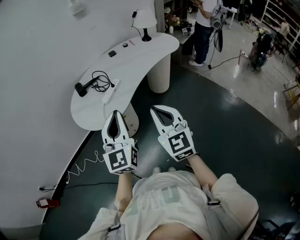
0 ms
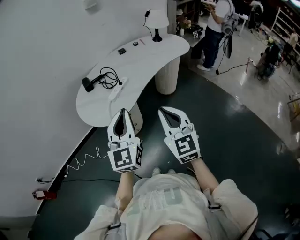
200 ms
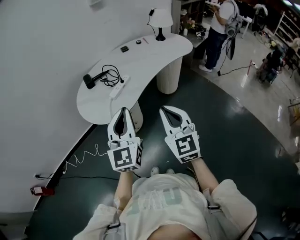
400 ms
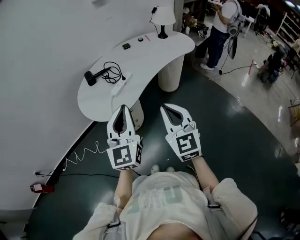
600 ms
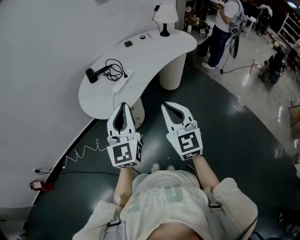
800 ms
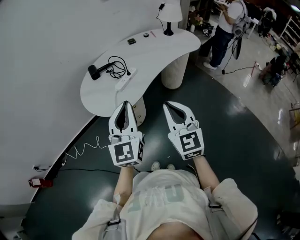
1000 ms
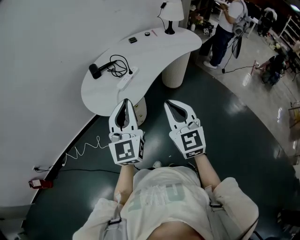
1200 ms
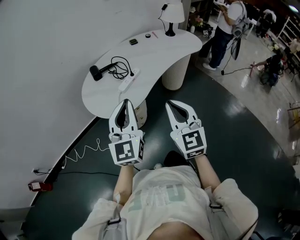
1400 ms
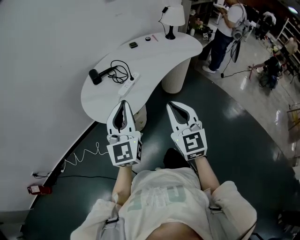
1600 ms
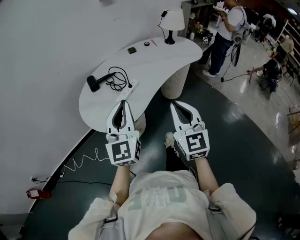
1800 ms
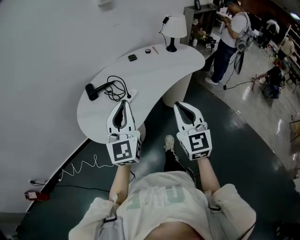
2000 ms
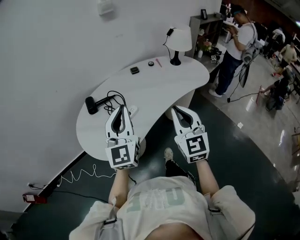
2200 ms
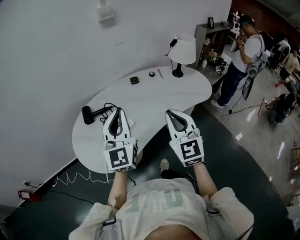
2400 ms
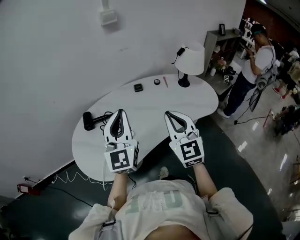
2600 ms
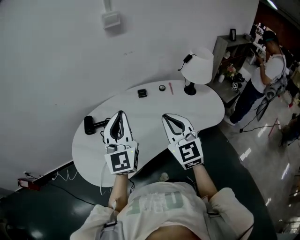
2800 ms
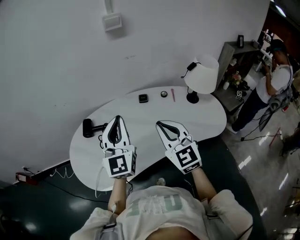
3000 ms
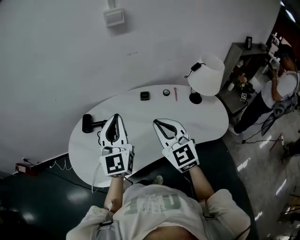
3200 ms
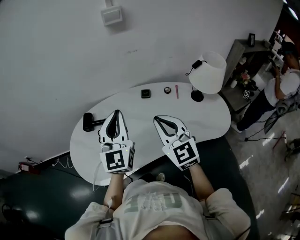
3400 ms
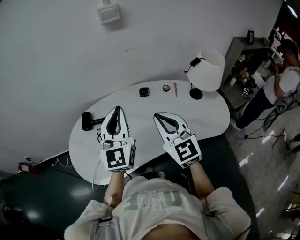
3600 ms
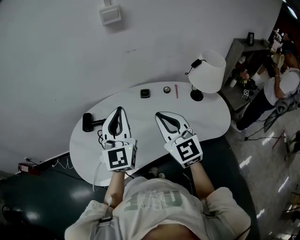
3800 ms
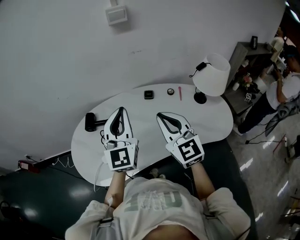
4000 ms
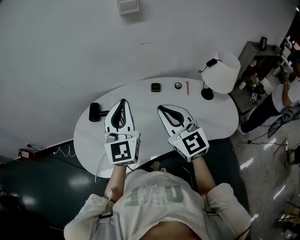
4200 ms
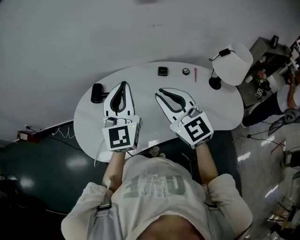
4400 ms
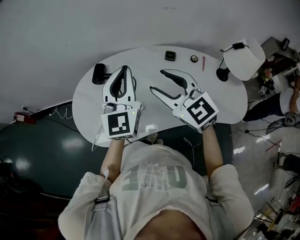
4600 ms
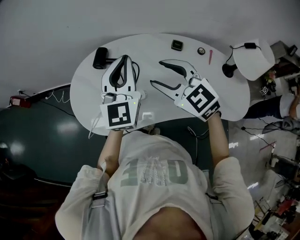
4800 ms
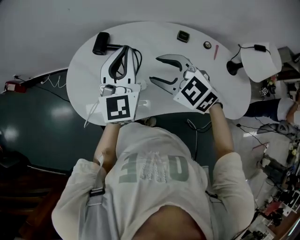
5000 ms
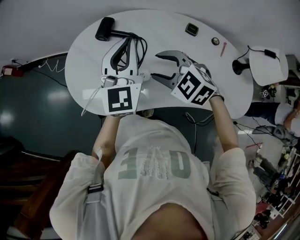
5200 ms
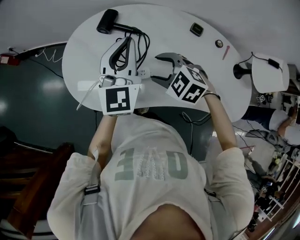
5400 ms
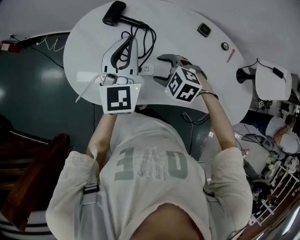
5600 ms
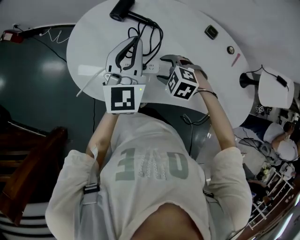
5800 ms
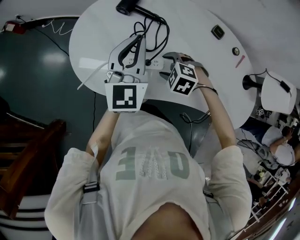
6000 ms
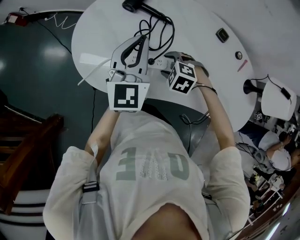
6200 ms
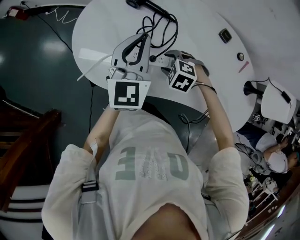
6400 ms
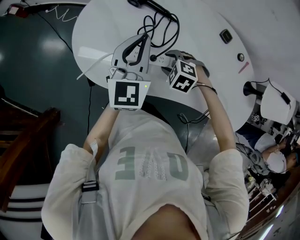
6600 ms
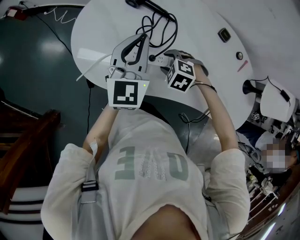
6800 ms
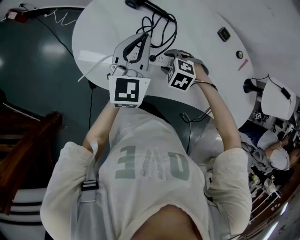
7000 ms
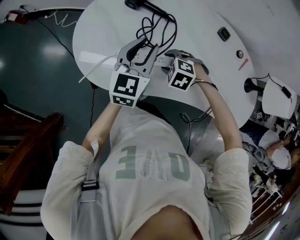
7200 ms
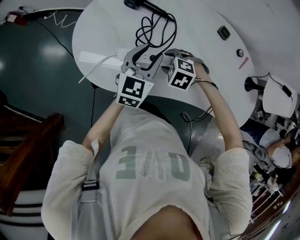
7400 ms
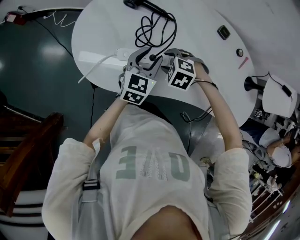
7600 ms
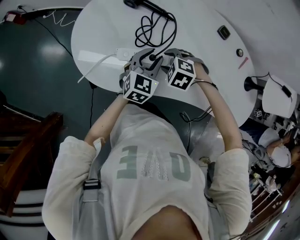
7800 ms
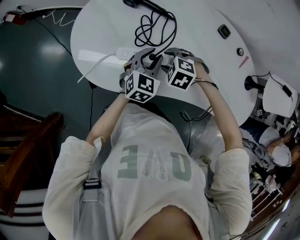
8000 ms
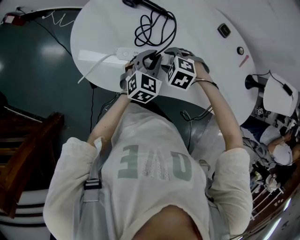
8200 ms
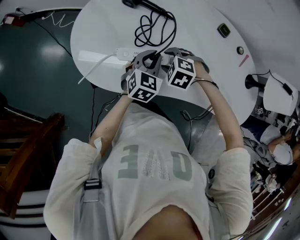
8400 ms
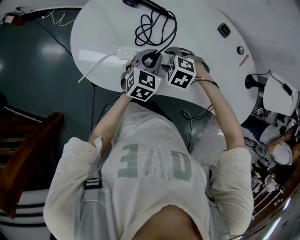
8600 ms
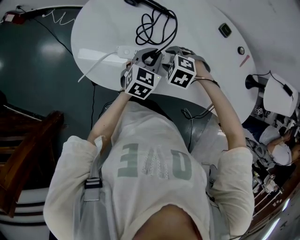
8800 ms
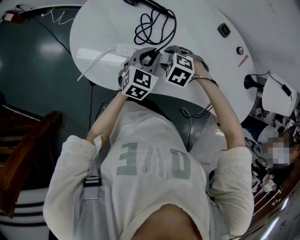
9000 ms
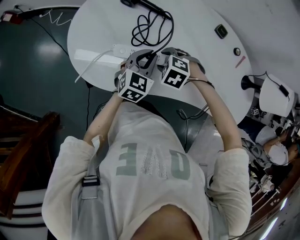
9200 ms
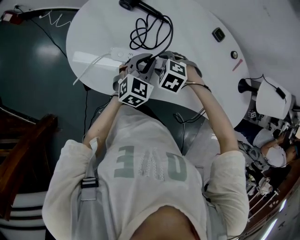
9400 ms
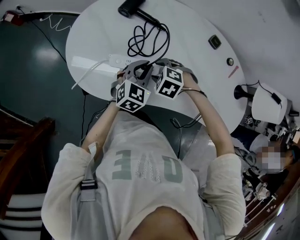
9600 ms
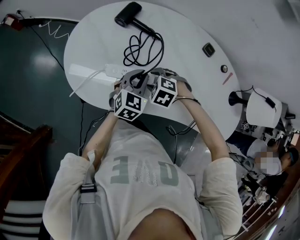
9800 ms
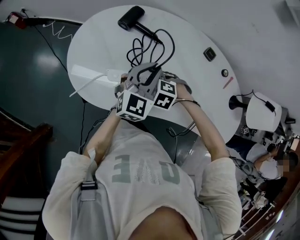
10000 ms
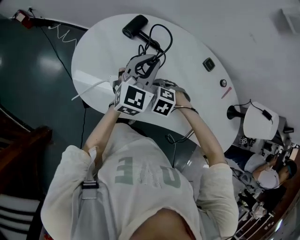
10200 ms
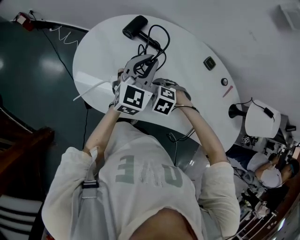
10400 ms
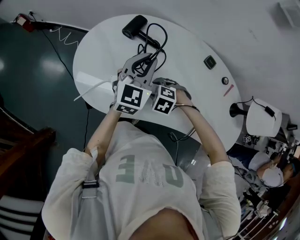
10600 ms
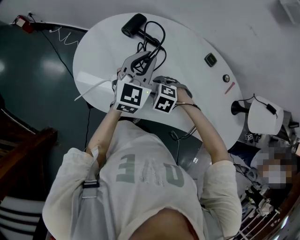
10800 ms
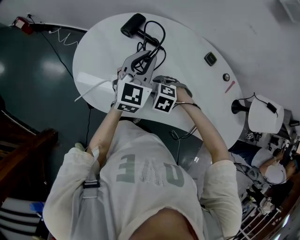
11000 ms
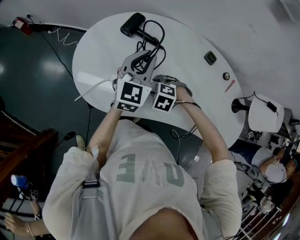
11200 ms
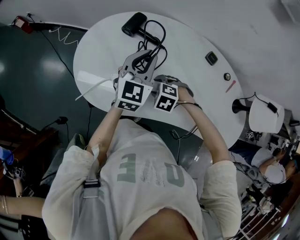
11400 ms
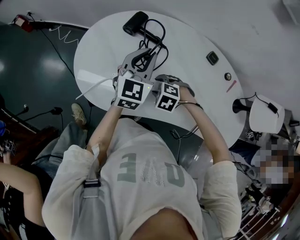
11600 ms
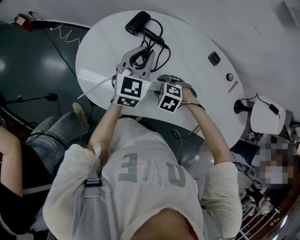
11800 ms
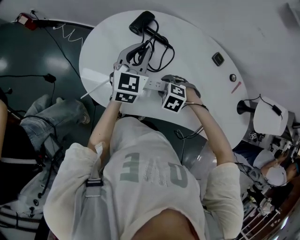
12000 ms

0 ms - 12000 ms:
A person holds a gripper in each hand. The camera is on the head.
0 ms - 1600 ms: The left gripper goes some 10 cm to the left and forward; the right gripper moves forward, approximately 5 cm.
1600 ms - 3000 ms: Both grippers are carried some 40 cm. The left gripper turns by approximately 20 degrees. The right gripper turns by about 30 degrees.
3000 ms - 4400 ms: The right gripper goes some 5 cm forward. Meanwhile the left gripper ends up approximately 5 cm from where it was.
4400 ms - 6000 ms: The left gripper shifts about 15 cm downward, and rotates approximately 20 degrees. The right gripper heads downward, covering roughly 35 cm, tilts its fingers some 70 degrees downward, and opens its fingers.
6000 ms - 7600 ms: The left gripper heads downward, covering about 15 cm, swivels roughly 30 degrees, and opens its fingers.
7600 ms - 9000 ms: The left gripper closes.
9000 ms - 10400 ms: The left gripper travels upward by approximately 15 cm, and turns by approximately 20 degrees.
10400 ms - 12000 ms: The left gripper shifts by approximately 5 cm.

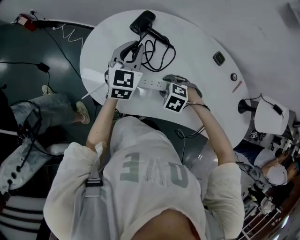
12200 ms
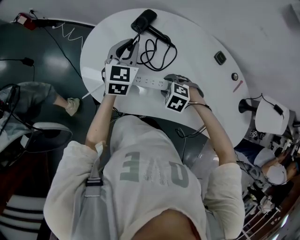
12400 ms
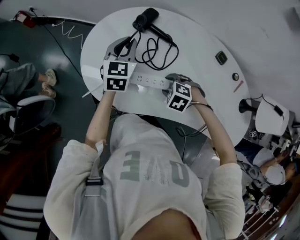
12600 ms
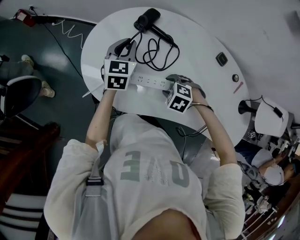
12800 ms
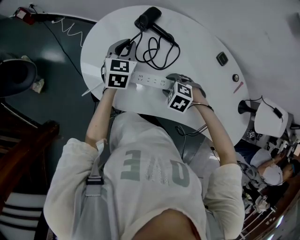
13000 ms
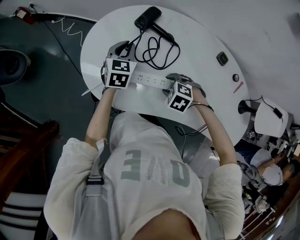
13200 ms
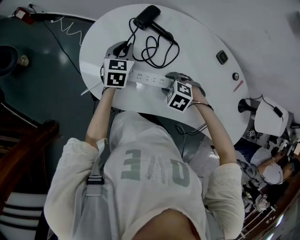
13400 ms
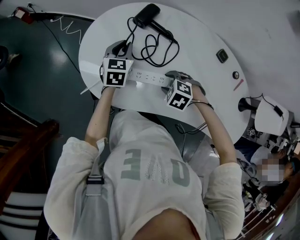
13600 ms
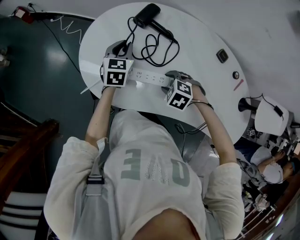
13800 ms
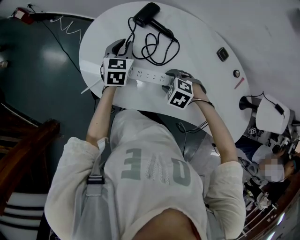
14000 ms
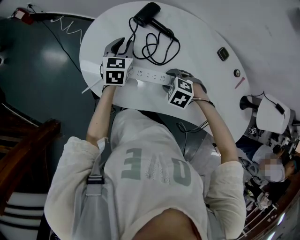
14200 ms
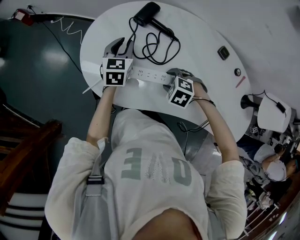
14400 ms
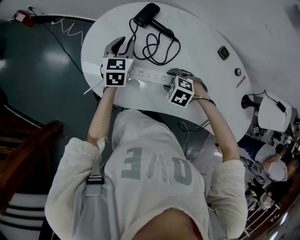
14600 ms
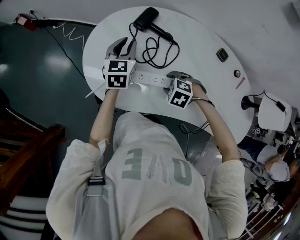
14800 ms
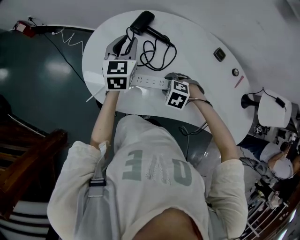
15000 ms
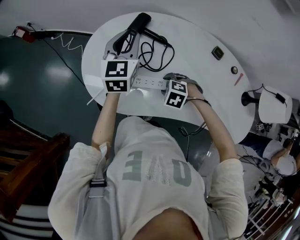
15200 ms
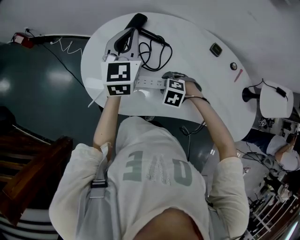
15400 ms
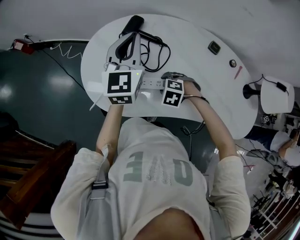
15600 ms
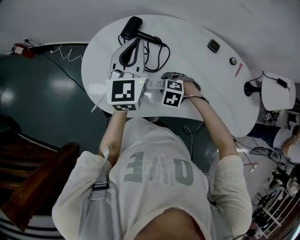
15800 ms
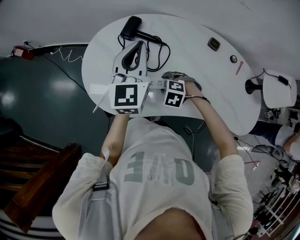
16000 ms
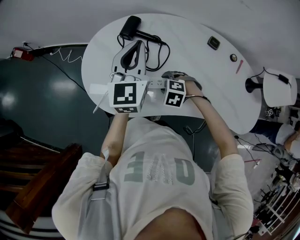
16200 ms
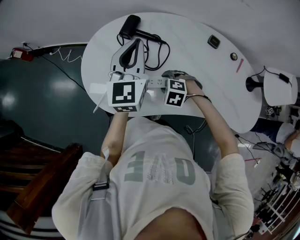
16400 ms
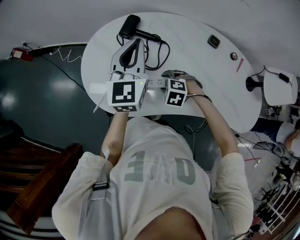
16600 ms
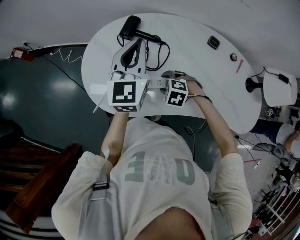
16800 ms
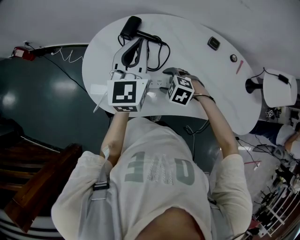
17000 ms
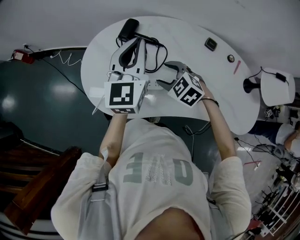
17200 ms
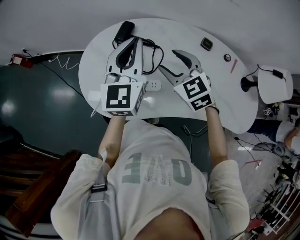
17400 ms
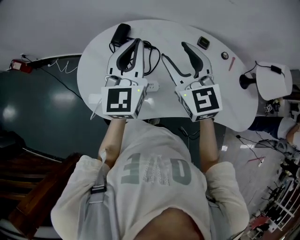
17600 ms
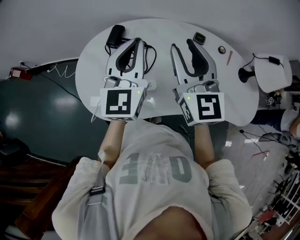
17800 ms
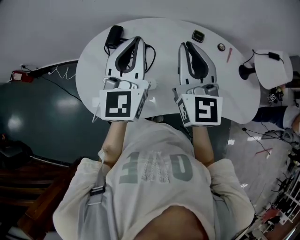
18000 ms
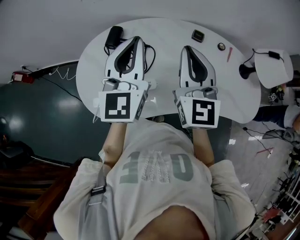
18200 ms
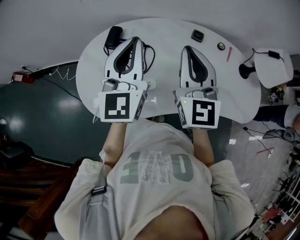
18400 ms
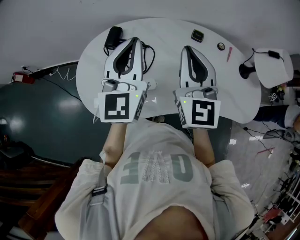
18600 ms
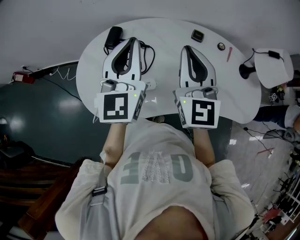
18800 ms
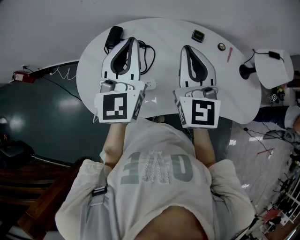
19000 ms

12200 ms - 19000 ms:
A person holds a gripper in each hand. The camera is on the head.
12200 ms - 13600 ms: The left gripper is displaced downward by approximately 10 cm.
13600 ms - 15000 ms: The left gripper heads upward, covering some 10 cm.
15000 ms - 16200 ms: The left gripper goes about 10 cm upward, and closes up.
16200 ms - 17600 ms: The right gripper shifts some 30 cm upward, and tilts its fingers approximately 70 degrees upward. The left gripper is displaced upward by some 5 cm.
17600 ms - 19000 ms: The right gripper shifts approximately 5 cm to the right, changes its angle by about 20 degrees, and closes up.

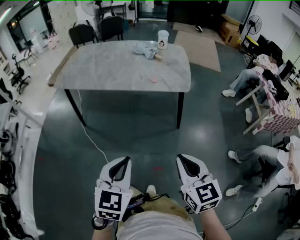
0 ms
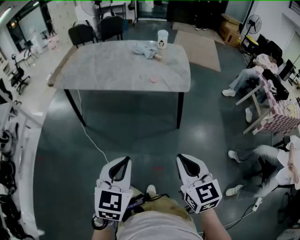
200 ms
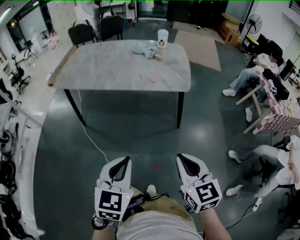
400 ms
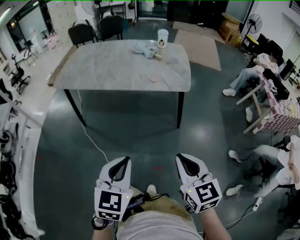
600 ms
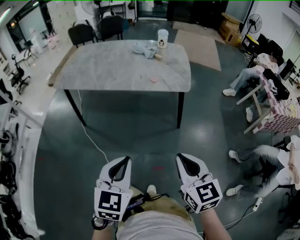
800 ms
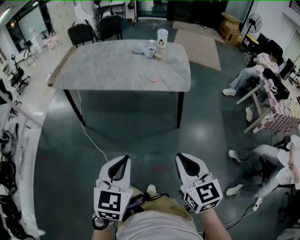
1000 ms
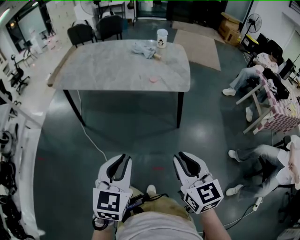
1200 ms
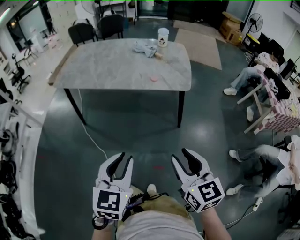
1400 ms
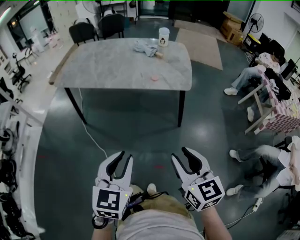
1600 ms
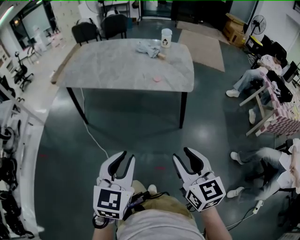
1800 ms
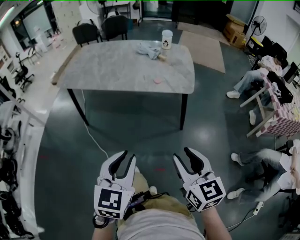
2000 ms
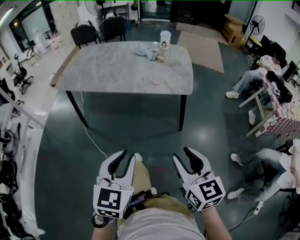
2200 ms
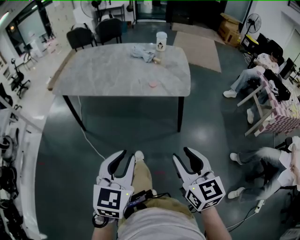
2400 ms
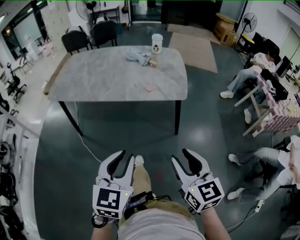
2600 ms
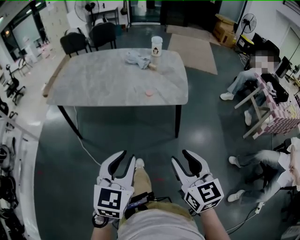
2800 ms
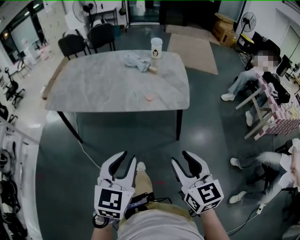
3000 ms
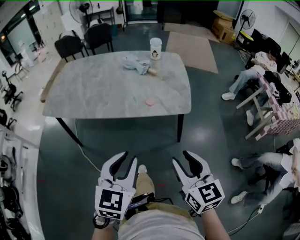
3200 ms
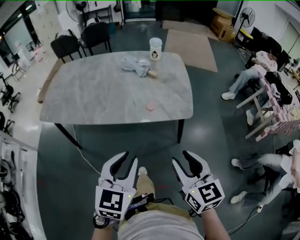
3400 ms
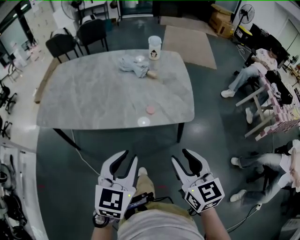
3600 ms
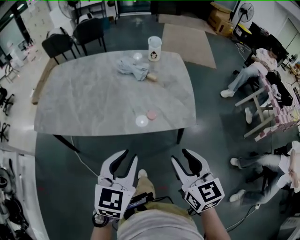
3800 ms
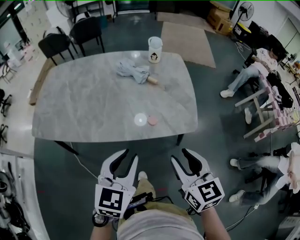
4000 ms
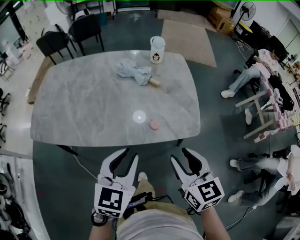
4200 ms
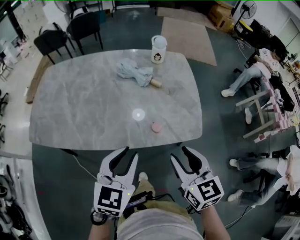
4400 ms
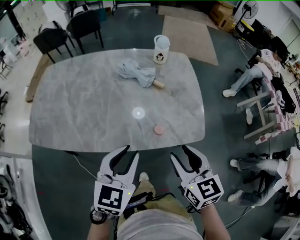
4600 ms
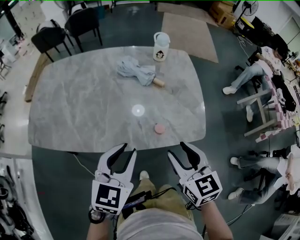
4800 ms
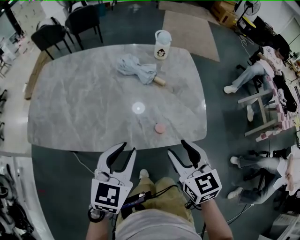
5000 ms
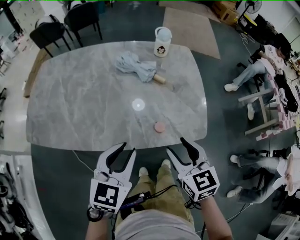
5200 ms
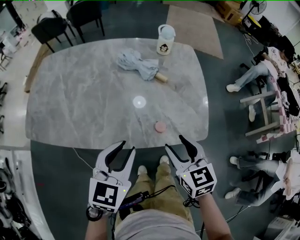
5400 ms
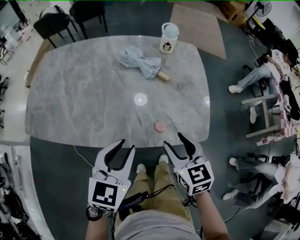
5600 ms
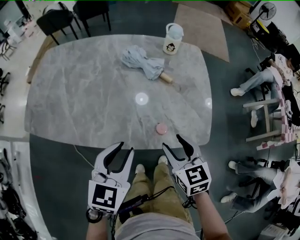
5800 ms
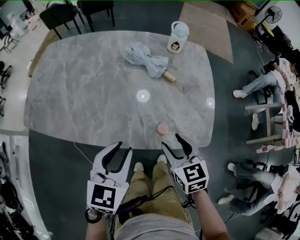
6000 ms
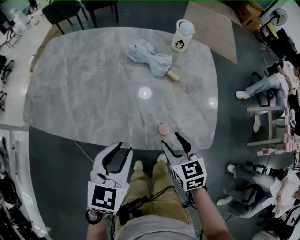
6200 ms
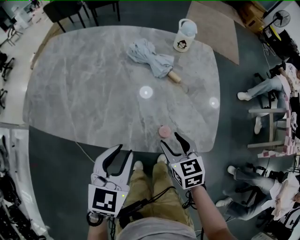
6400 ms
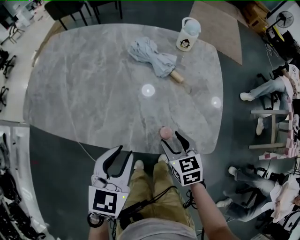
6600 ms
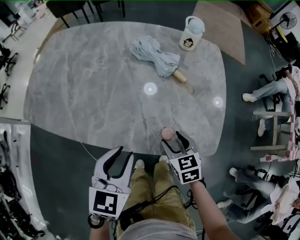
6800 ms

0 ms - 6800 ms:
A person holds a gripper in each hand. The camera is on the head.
0 ms - 1400 ms: The right gripper opens its fingers.
1400 ms - 2800 ms: The two grippers go about 10 cm forward.
2800 ms - 4000 ms: Both grippers move forward, approximately 25 cm.
4000 ms - 5400 ms: The left gripper is displaced forward by some 10 cm; the right gripper goes roughly 15 cm forward and downward.
5400 ms - 6800 ms: The left gripper moves some 5 cm. The right gripper moves downward and forward, approximately 15 cm.
